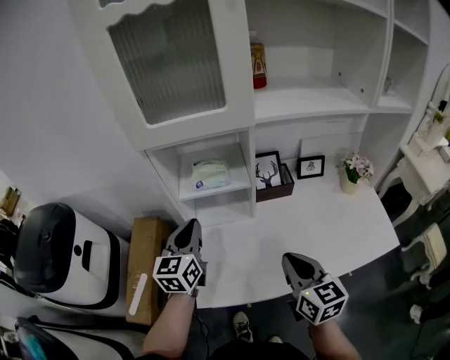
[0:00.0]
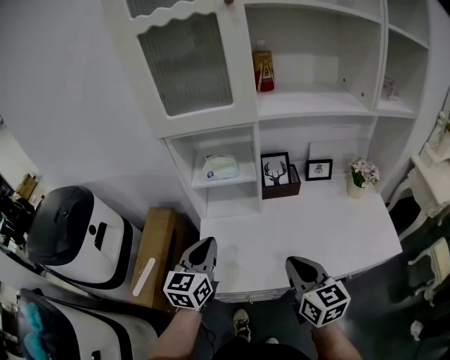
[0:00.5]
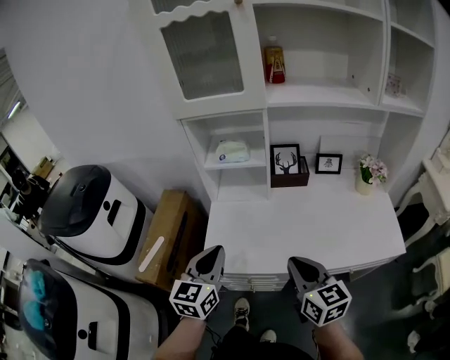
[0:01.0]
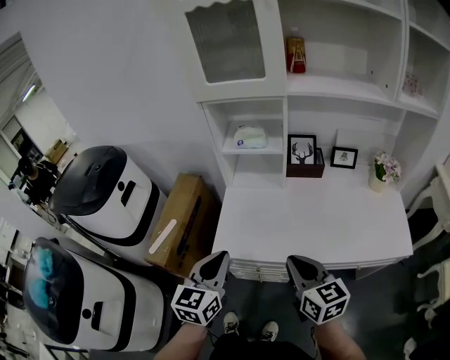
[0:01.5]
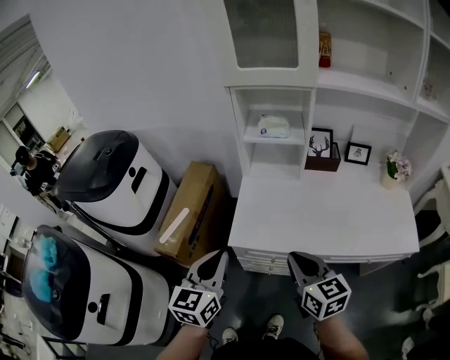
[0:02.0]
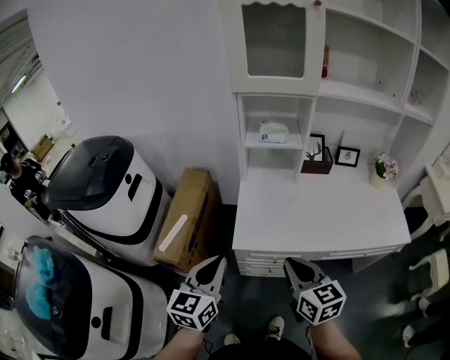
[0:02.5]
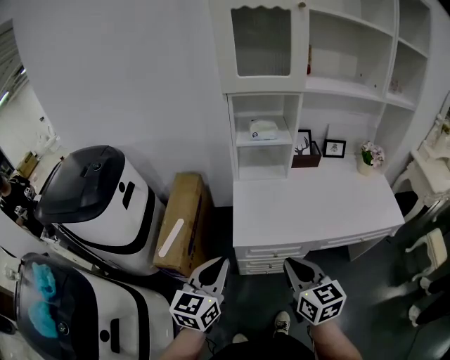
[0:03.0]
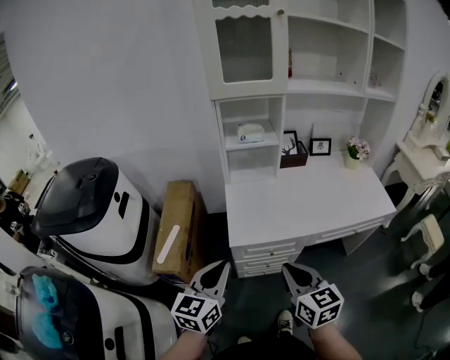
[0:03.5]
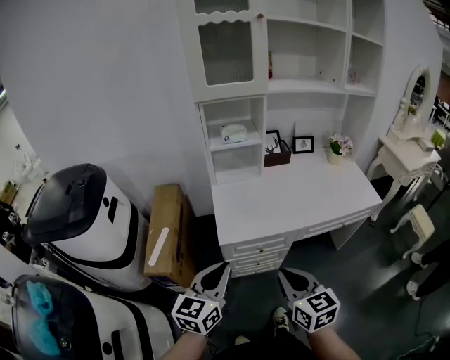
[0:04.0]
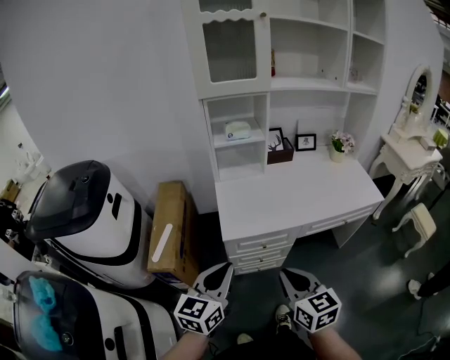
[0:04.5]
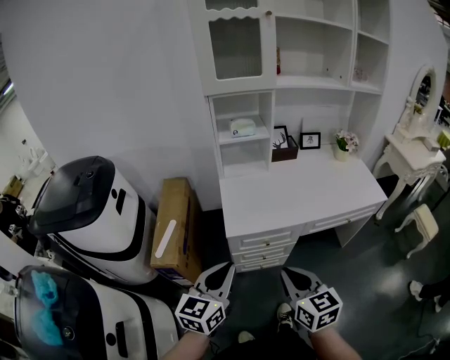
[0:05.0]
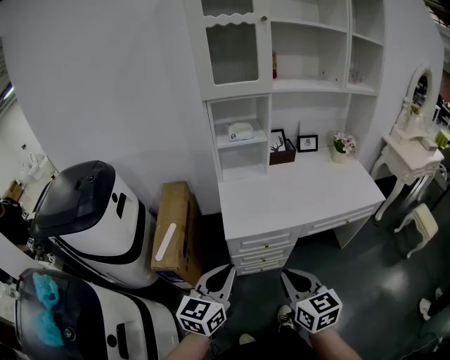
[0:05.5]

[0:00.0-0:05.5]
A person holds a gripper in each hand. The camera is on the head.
0:00.0 to 0:02.0: The right gripper goes about 20 cm backward and to the left, and changes its angle by roughly 20 degrees, while the left gripper is displaced backward by approximately 30 cm.
0:02.0 to 0:03.5: The left gripper heads backward and to the left, covering about 10 cm. The right gripper heads backward and to the left, covering roughly 15 cm.
0:03.5 to 0:05.5: The two grippers go about 5 cm backward.

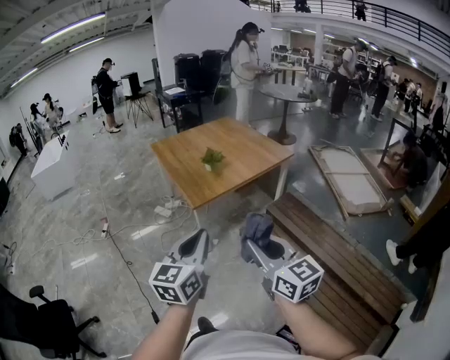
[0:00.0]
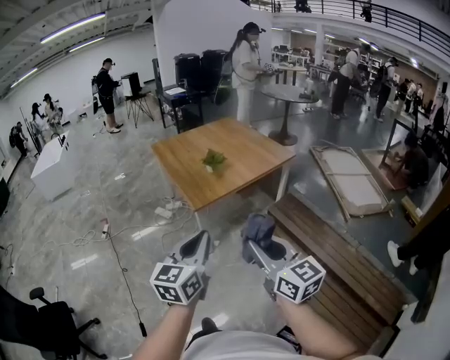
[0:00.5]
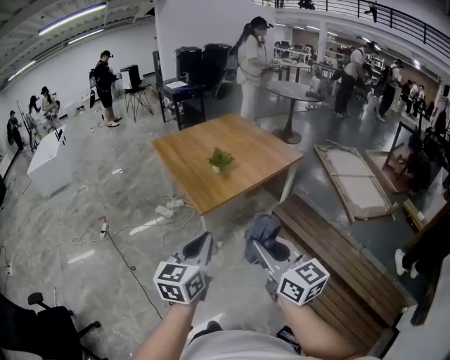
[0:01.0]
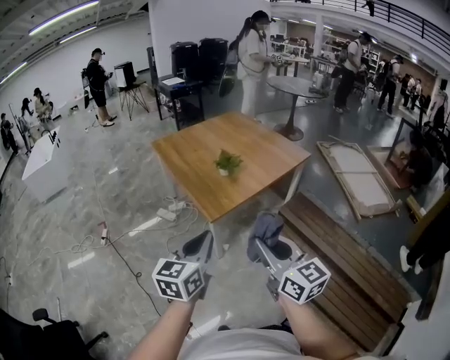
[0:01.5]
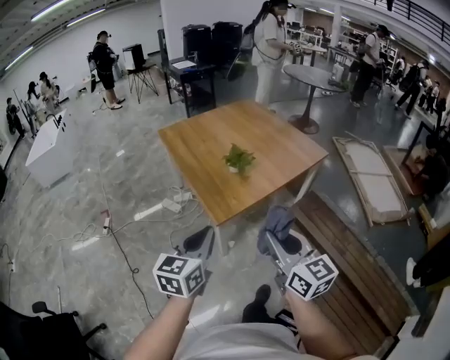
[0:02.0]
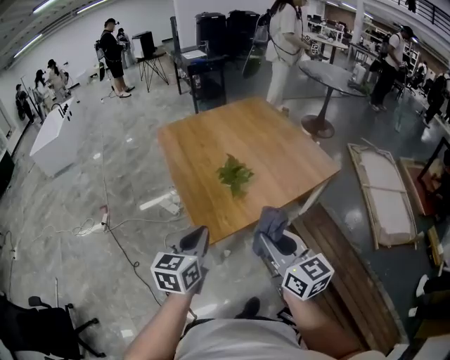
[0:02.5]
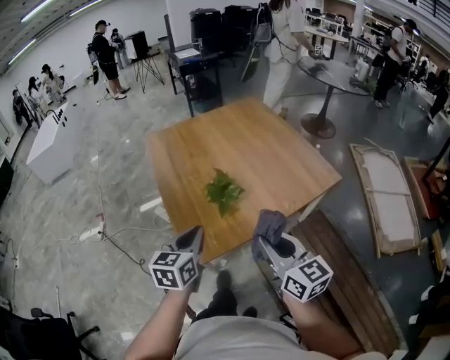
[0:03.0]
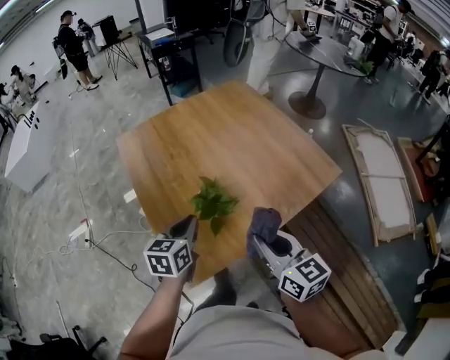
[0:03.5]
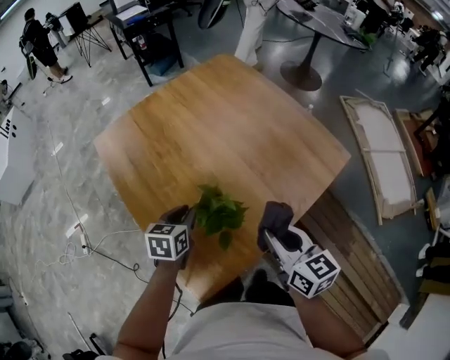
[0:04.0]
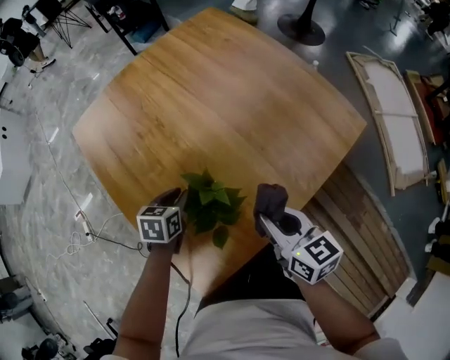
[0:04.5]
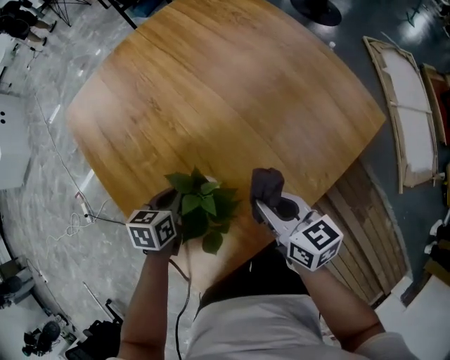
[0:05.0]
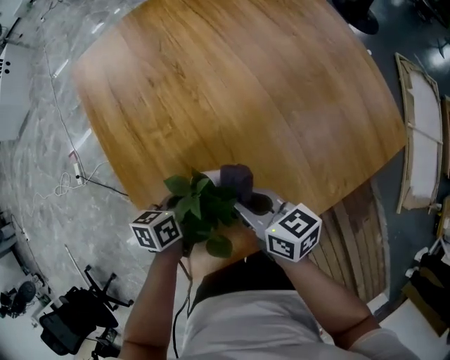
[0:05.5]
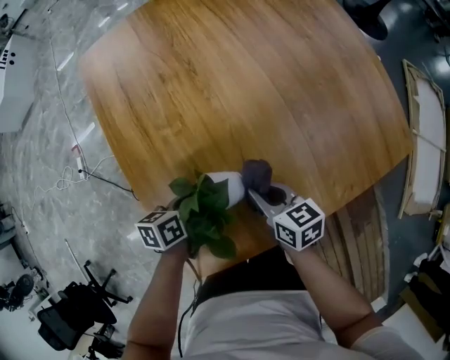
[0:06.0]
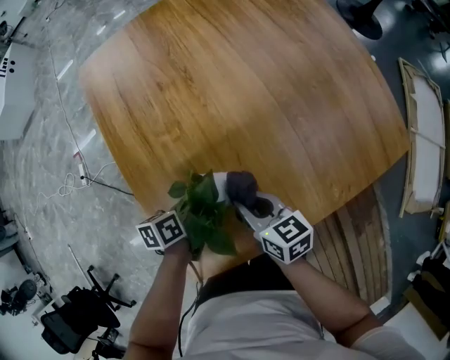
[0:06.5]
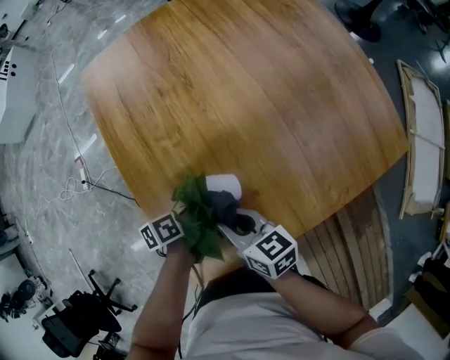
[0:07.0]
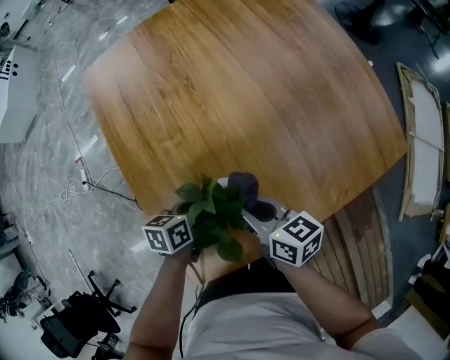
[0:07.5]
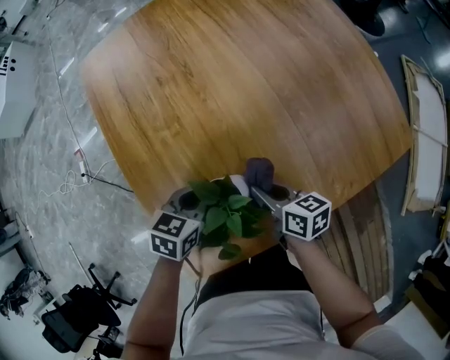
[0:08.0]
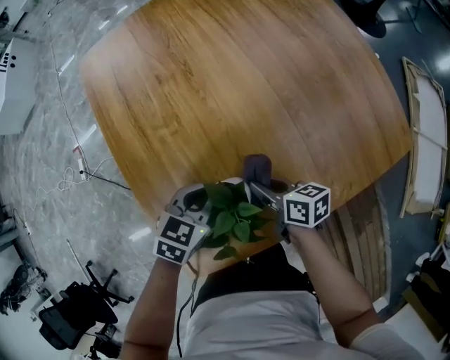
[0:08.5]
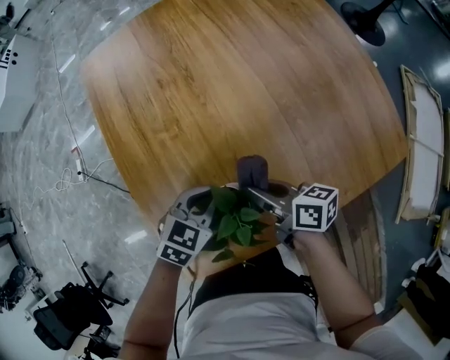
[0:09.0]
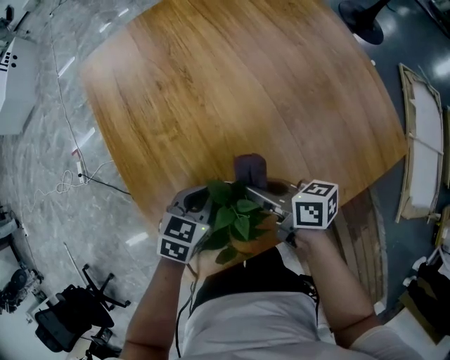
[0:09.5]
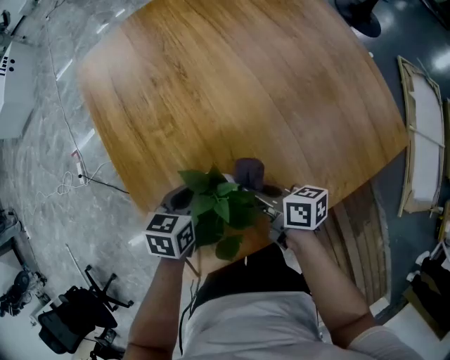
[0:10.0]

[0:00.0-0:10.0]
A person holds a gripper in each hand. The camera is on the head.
0:00.0 to 0:02.0: Both grippers move forward, some 35 cm.
0:02.0 to 0:04.0: The two grippers travel together, forward, about 60 cm. The right gripper changes its angle by some 20 degrees; the left gripper swivels some 30 degrees.
0:04.0 to 0:06.0: Both grippers move downward, roughly 25 cm. The left gripper rotates about 30 degrees. Meanwhile the right gripper changes its angle by roughly 30 degrees.
0:06.0 to 0:08.0: The right gripper travels to the left and back again, some 10 cm each way; the left gripper ends up some 5 cm from where it was, and turns by roughly 30 degrees.

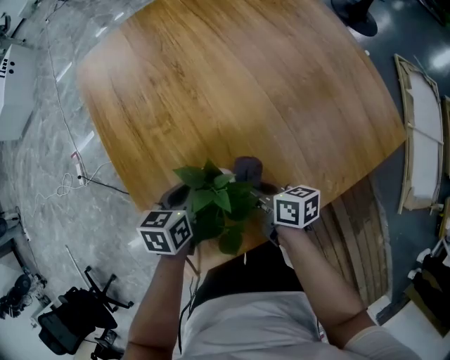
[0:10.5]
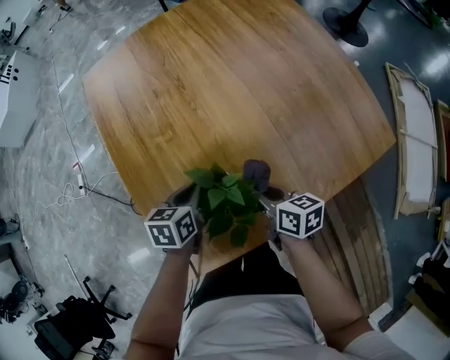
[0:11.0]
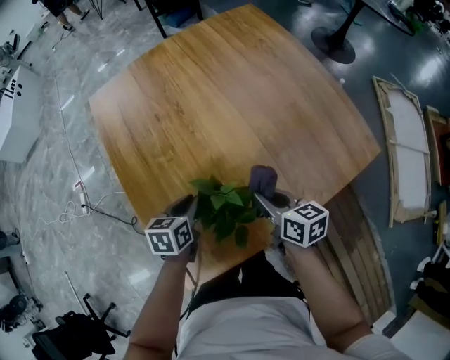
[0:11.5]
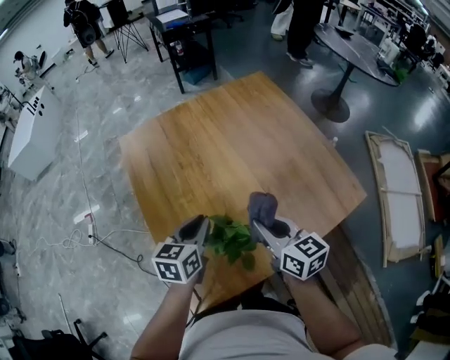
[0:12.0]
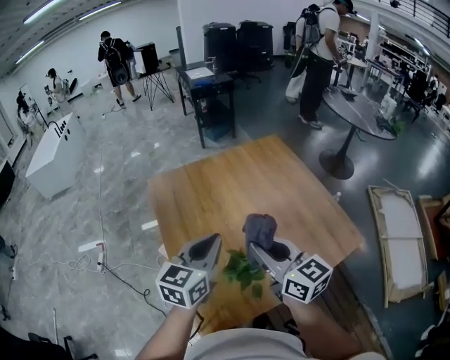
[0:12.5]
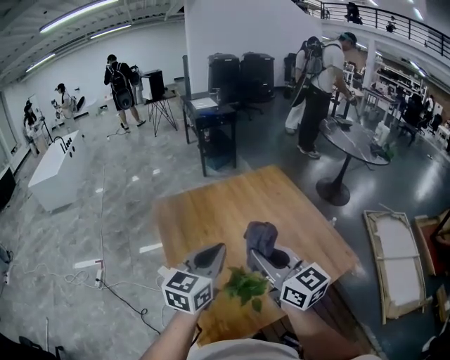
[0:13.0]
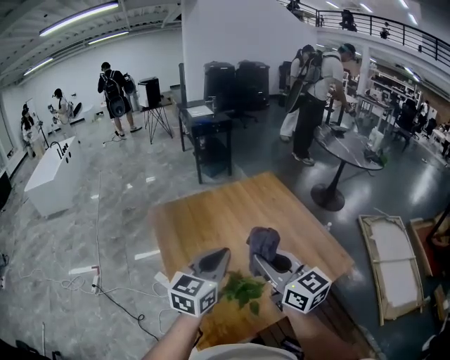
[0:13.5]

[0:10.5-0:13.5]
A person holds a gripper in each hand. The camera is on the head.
0:10.5 to 0:12.0: Both grippers travel together upward, roughly 25 cm. The left gripper changes its angle by roughly 20 degrees, while the right gripper changes its angle by roughly 40 degrees.
0:12.0 to 0:13.5: The grippers both shift upward by approximately 25 cm. The right gripper turns by approximately 20 degrees. The left gripper turns by some 30 degrees.

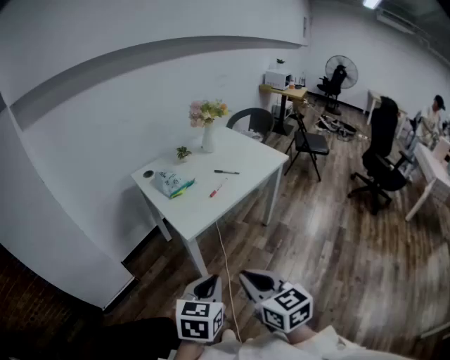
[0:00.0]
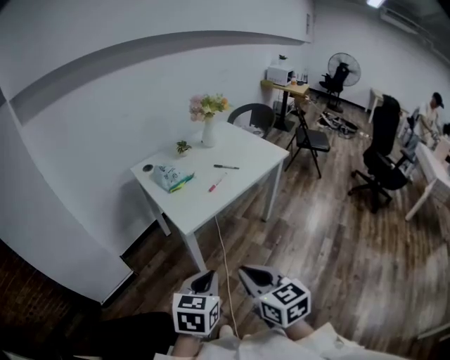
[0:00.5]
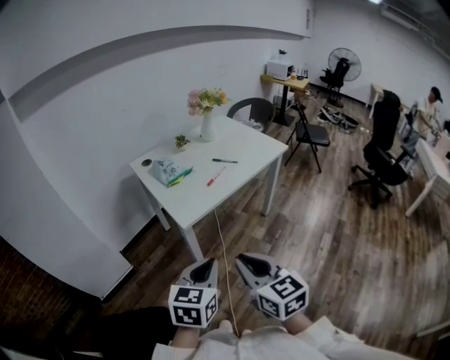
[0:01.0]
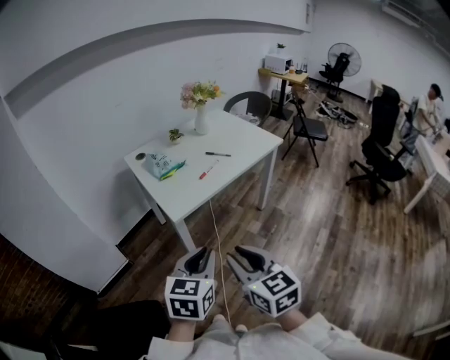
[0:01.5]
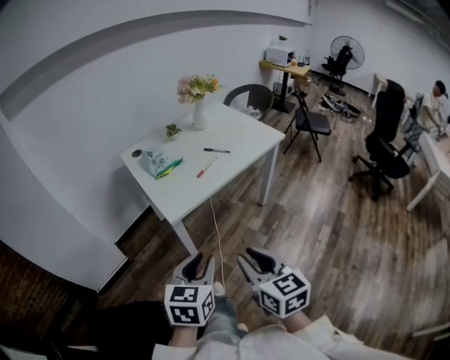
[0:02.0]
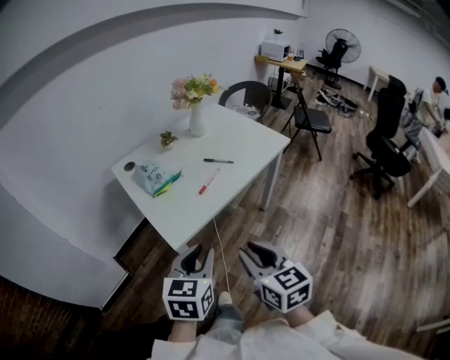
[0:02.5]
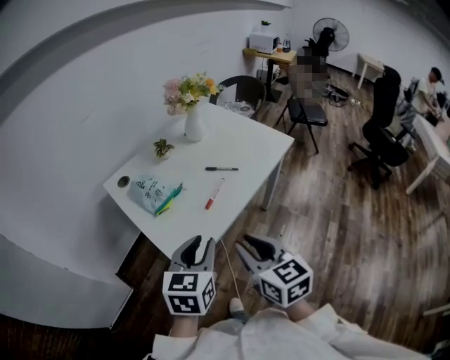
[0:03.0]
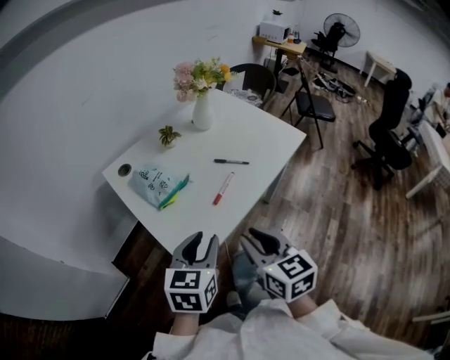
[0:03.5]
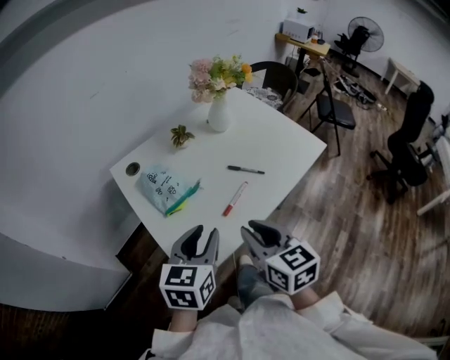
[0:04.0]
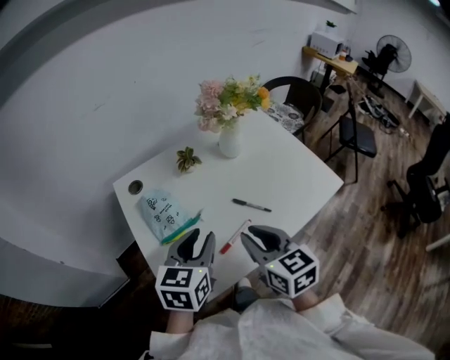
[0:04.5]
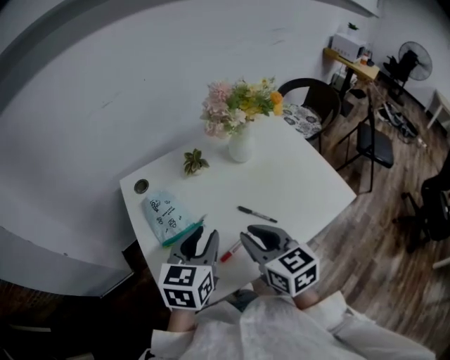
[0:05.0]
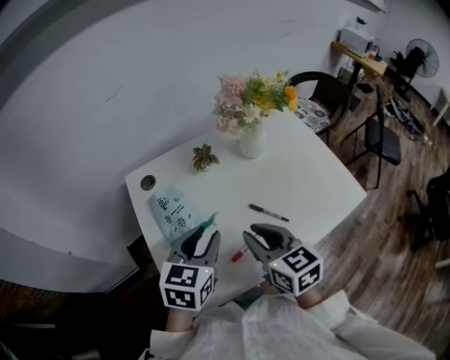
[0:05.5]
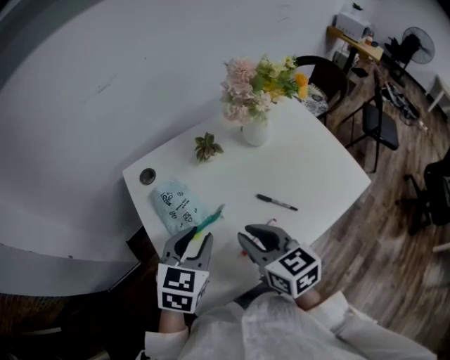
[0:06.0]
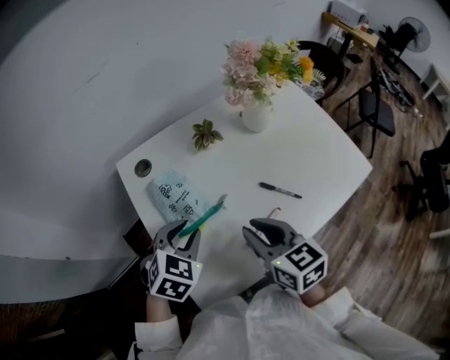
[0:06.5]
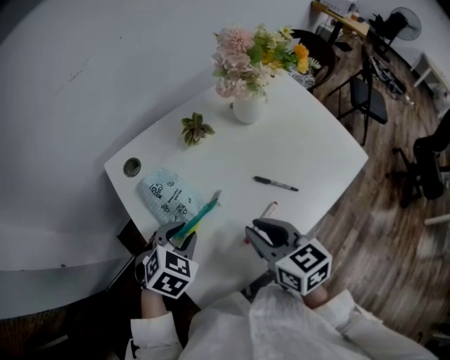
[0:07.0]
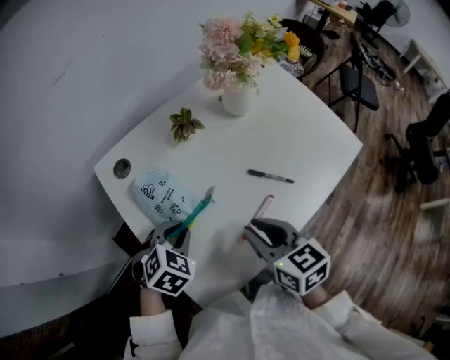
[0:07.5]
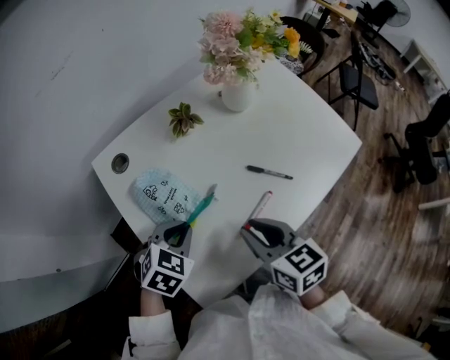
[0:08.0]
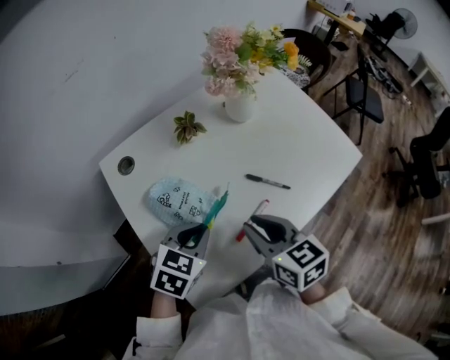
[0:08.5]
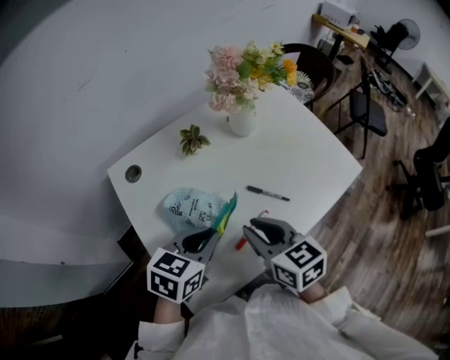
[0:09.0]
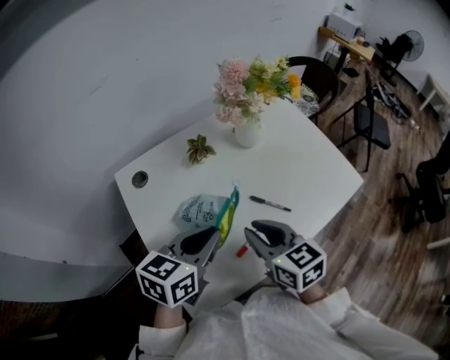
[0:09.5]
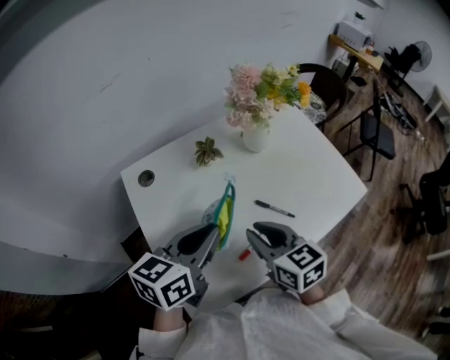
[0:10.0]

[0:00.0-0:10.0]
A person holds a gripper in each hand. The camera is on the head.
0:00.0 to 0:02.0: The right gripper travels to the right by roughly 5 cm. The left gripper moves roughly 5 cm.
0:02.0 to 0:04.0: Both grippers move forward, approximately 35 cm.
0:04.0 to 0:06.0: Both grippers move forward, some 15 cm.
0:06.0 to 0:08.0: The right gripper moves some 5 cm, while the left gripper heads downward, covering approximately 10 cm, rotates roughly 30 degrees, and closes its fingers.
0:08.0 to 0:10.0: The right gripper shifts approximately 5 cm forward. Meanwhile the left gripper moves upward and to the right, approximately 20 cm, and tips its fingers upward by approximately 40 degrees.
